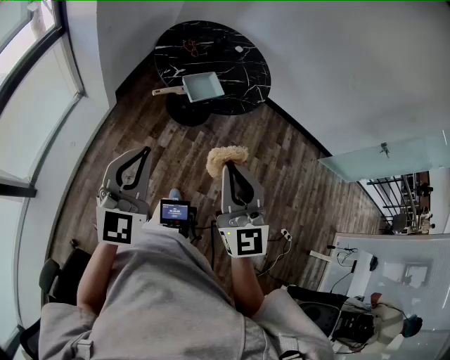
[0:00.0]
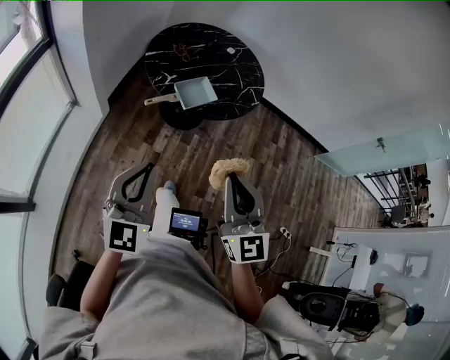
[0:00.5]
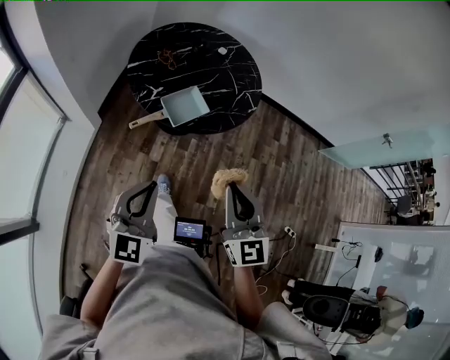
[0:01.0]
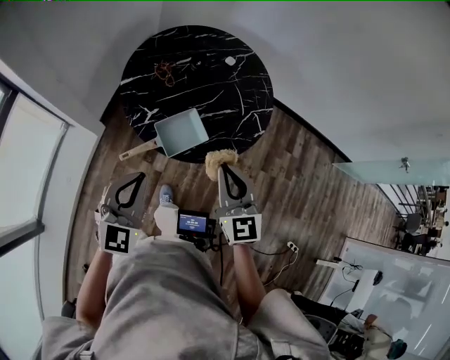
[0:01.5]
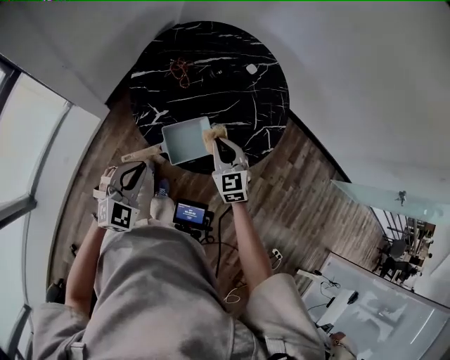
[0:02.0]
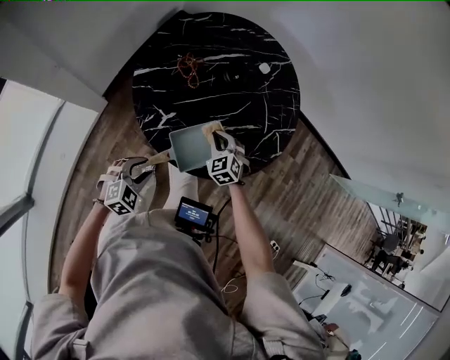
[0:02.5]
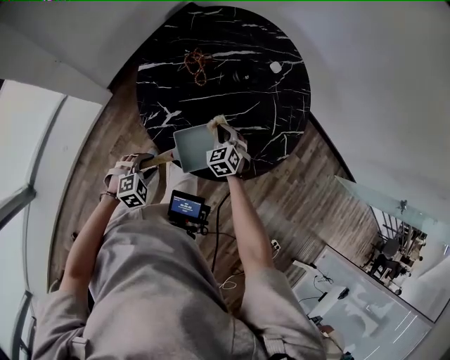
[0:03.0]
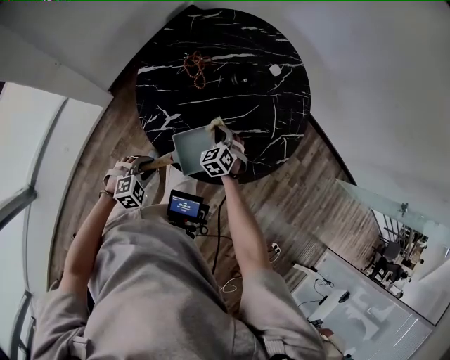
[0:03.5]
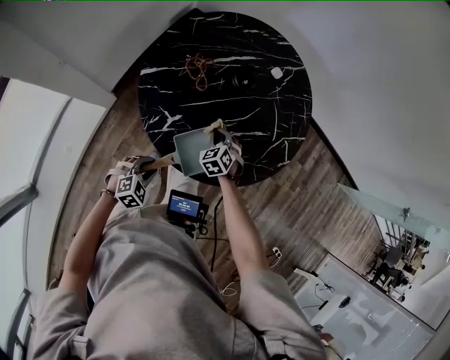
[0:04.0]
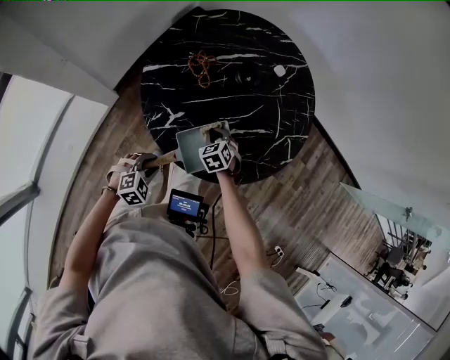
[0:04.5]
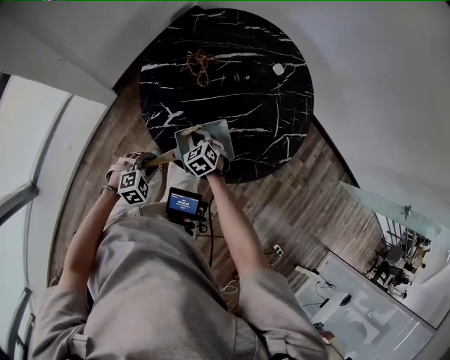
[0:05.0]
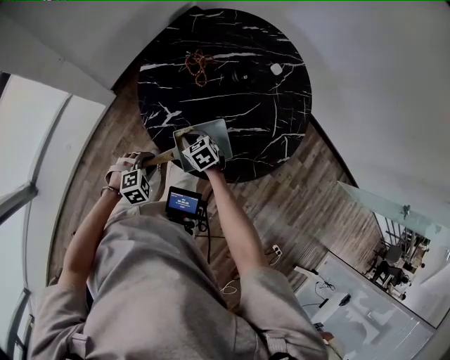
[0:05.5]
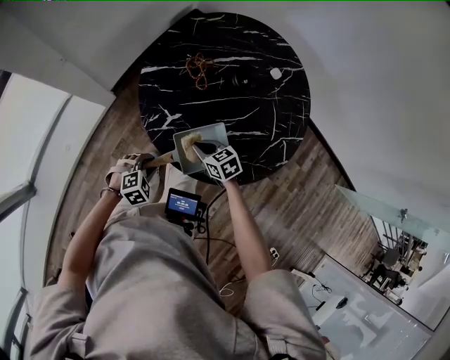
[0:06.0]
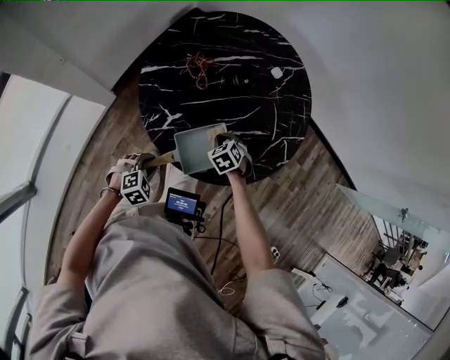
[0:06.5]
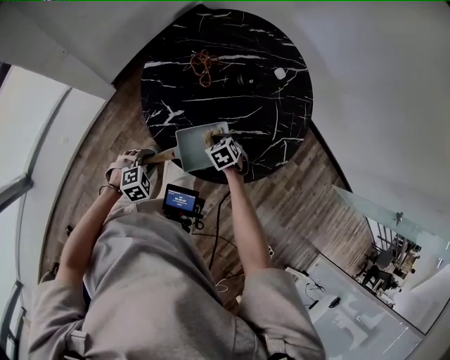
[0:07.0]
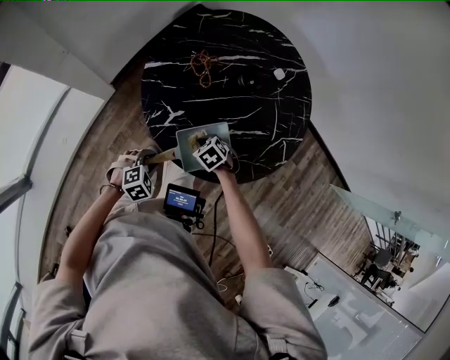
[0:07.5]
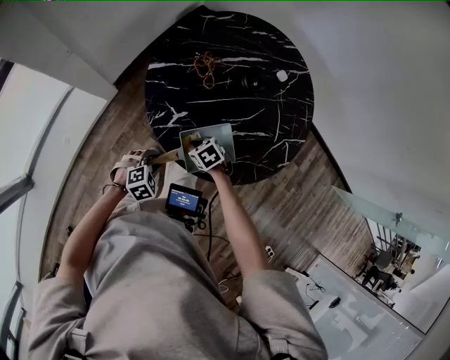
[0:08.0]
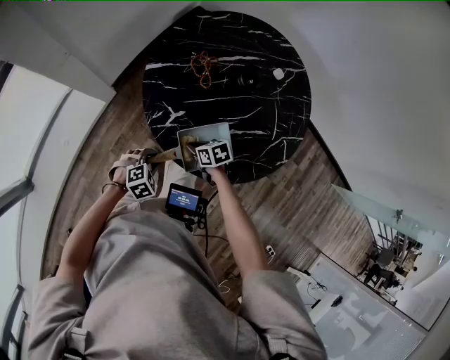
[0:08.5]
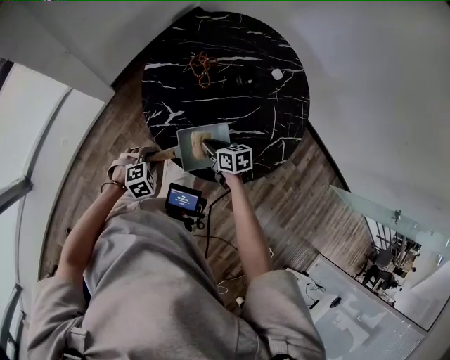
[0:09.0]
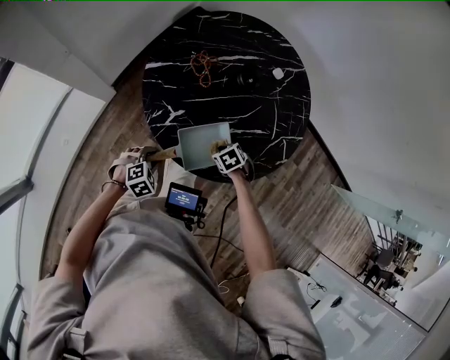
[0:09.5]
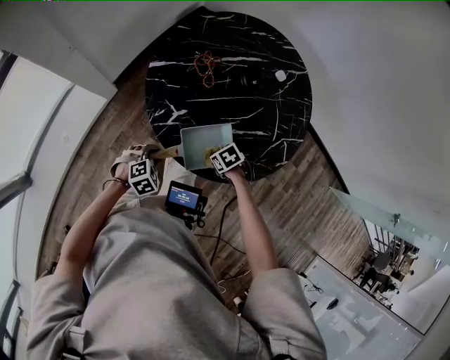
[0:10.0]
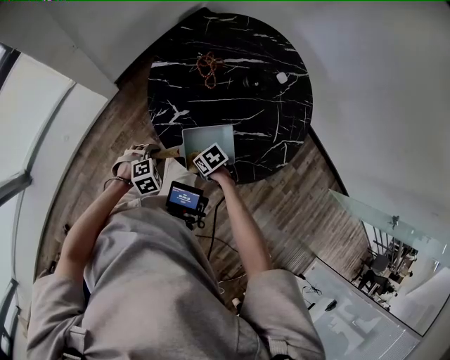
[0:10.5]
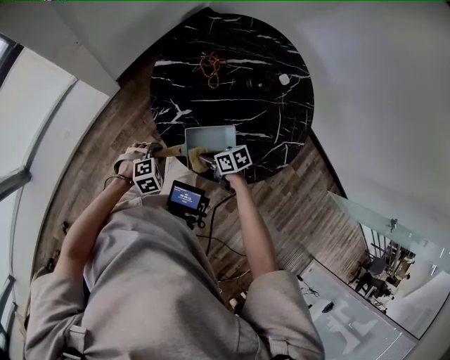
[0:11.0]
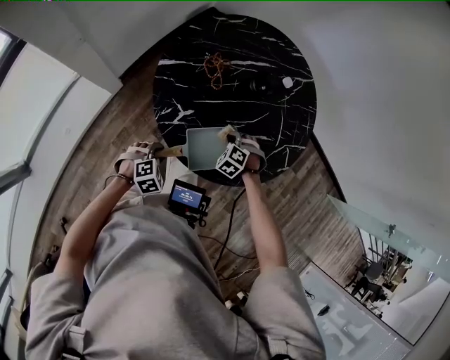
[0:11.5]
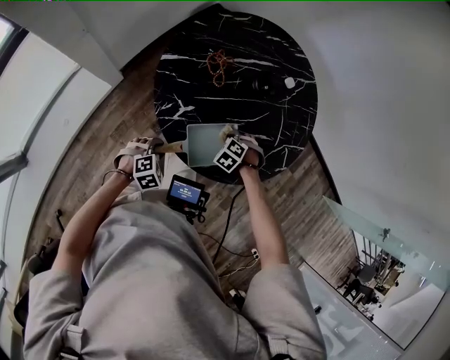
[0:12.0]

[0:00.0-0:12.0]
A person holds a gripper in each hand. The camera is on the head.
0:00.0 to 0:02.0: The pair of grippers is taken forward, about 50 cm. Both grippers move downward, some 25 cm. The left gripper rotates about 30 degrees. The right gripper angles its fingers downward, by roughly 30 degrees.
0:02.0 to 0:04.0: Both grippers travel together downward, approximately 20 cm. The left gripper turns by approximately 30 degrees, and opens up, while the right gripper swivels about 30 degrees.
0:04.0 to 0:06.0: The right gripper ends up some 10 cm from where it was, and turns by about 40 degrees.
0:06.0 to 0:08.0: The right gripper moves downward, roughly 5 cm, and changes its angle by about 20 degrees.
0:08.0 to 0:10.0: The right gripper moves approximately 10 cm.
0:10.0 to 0:12.0: The right gripper changes place by about 10 cm, and rotates about 50 degrees.

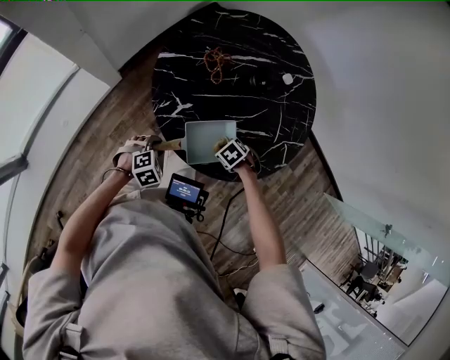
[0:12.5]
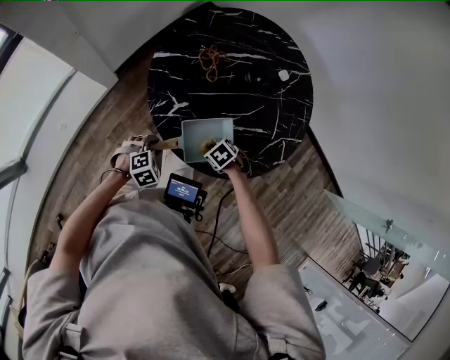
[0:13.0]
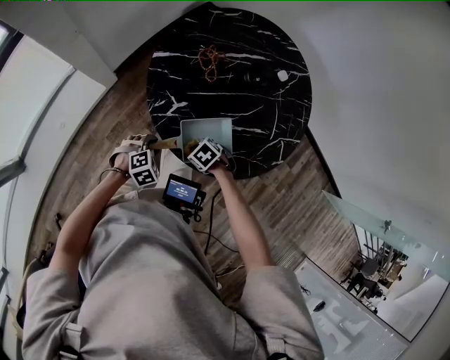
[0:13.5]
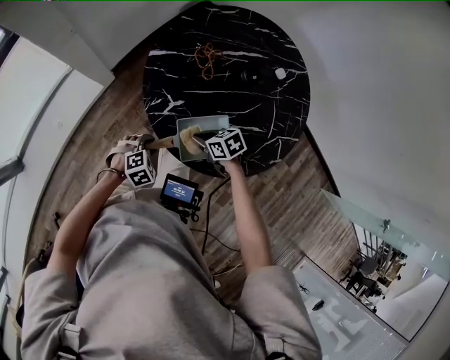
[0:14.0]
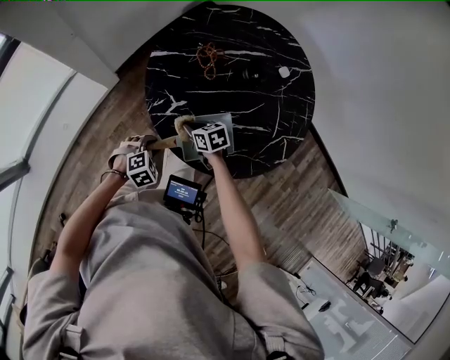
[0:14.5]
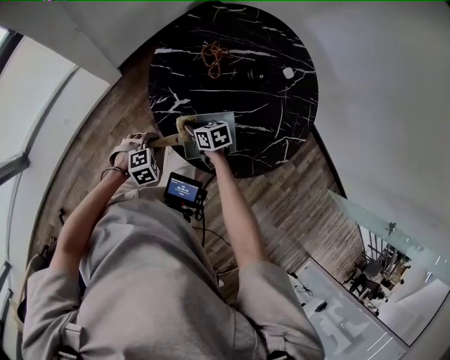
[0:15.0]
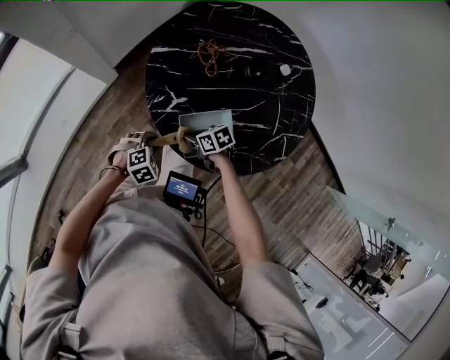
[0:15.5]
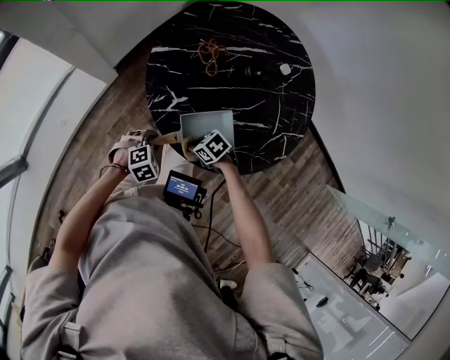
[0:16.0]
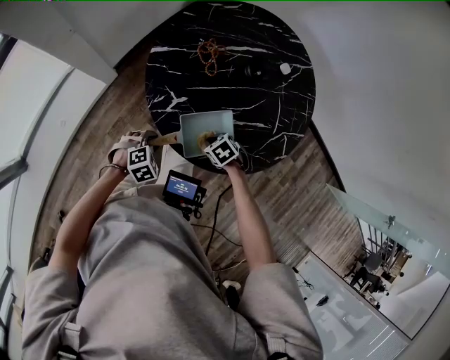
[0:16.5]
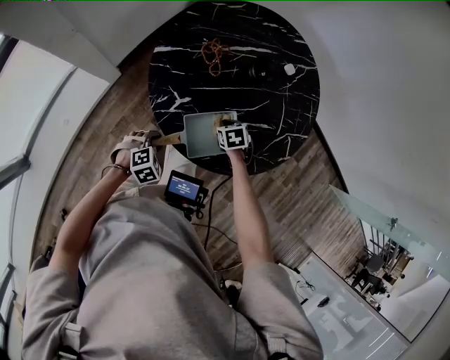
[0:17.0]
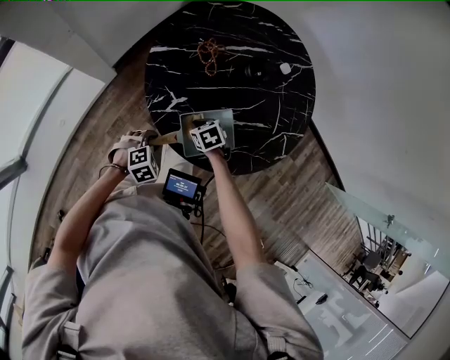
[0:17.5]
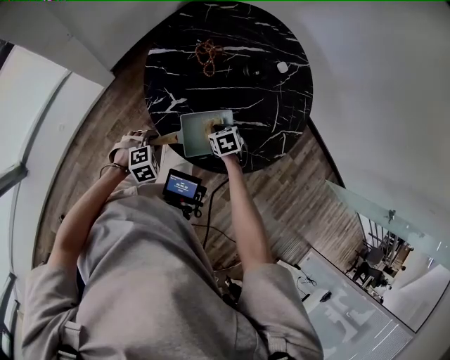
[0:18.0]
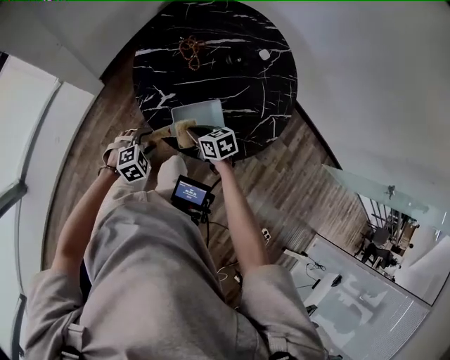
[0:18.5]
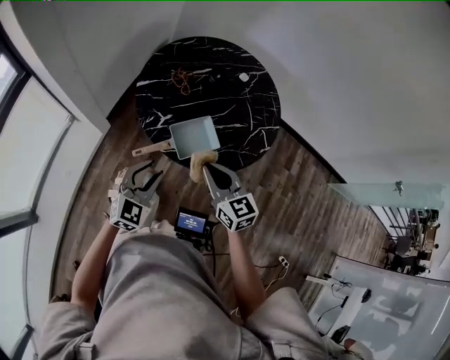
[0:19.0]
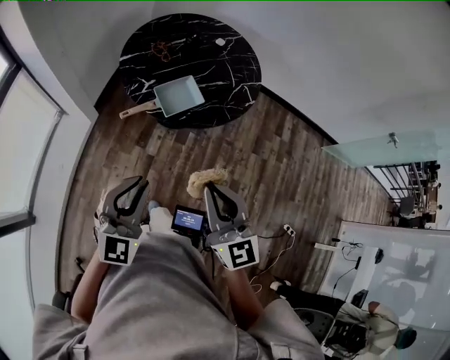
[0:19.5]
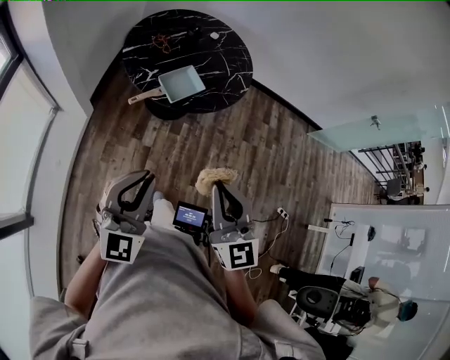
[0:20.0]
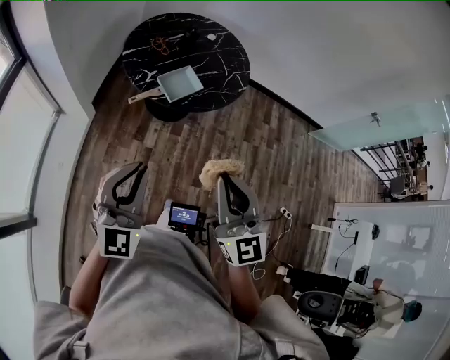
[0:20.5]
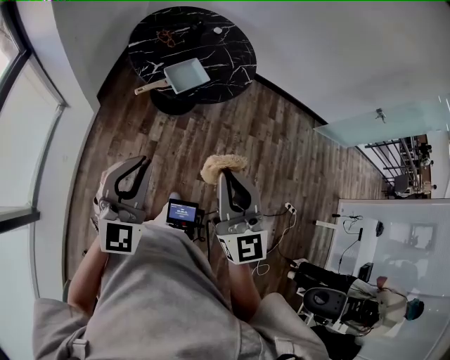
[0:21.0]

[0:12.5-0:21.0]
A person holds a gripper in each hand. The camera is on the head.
0:12.5 to 0:14.5: The right gripper moves about 15 cm, and points its fingers about 30 degrees further upward.
0:14.5 to 0:16.5: The right gripper ends up approximately 10 cm from where it was, and rotates roughly 30 degrees.
0:16.5 to 0:19.0: Both grippers move upward, roughly 30 cm. The left gripper angles its fingers upward, by some 50 degrees. Meanwhile the right gripper tilts its fingers roughly 60 degrees upward.
0:19.0 to 0:21.0: The grippers both shift backward and upward by some 40 cm. The right gripper changes its angle by approximately 40 degrees; the left gripper turns by about 20 degrees, and closes its fingers.

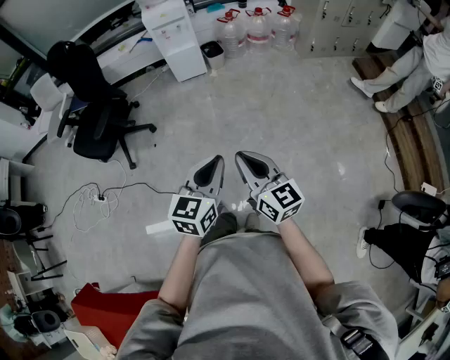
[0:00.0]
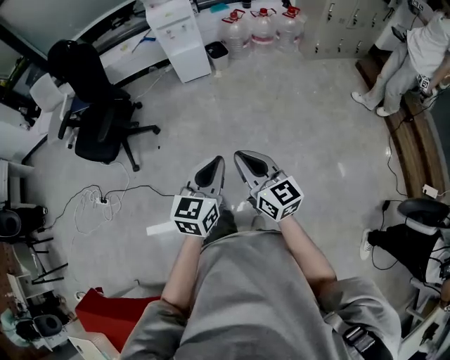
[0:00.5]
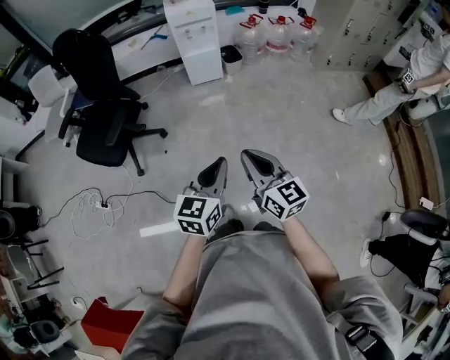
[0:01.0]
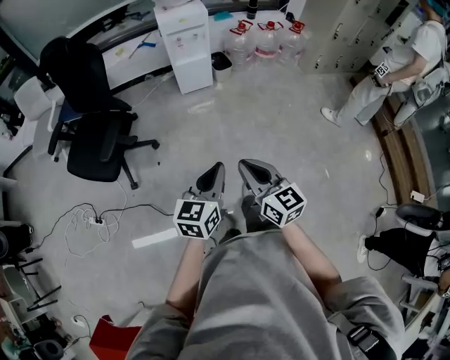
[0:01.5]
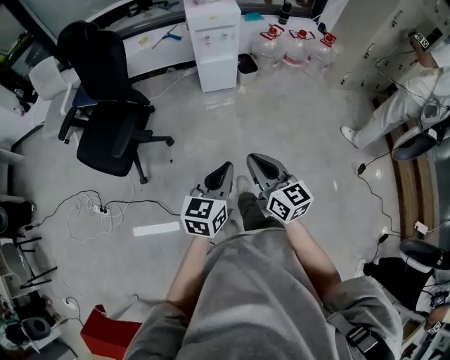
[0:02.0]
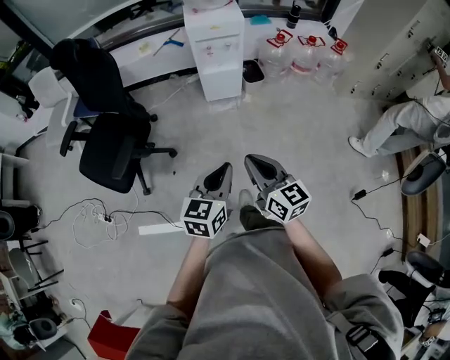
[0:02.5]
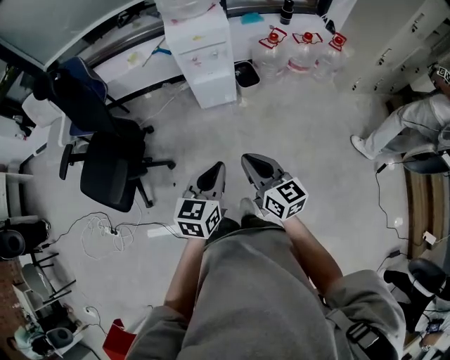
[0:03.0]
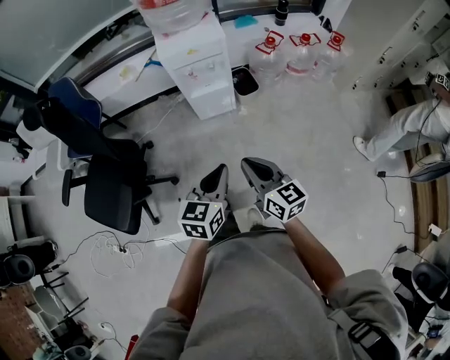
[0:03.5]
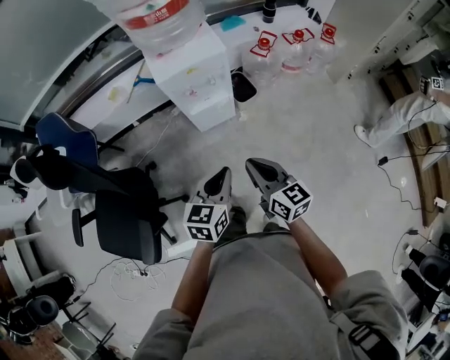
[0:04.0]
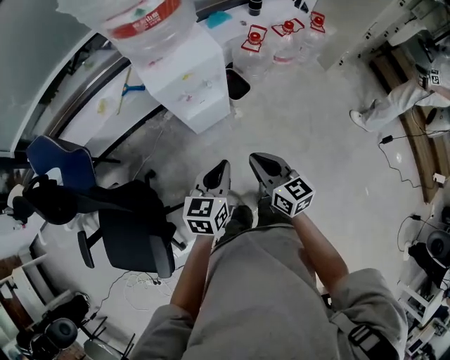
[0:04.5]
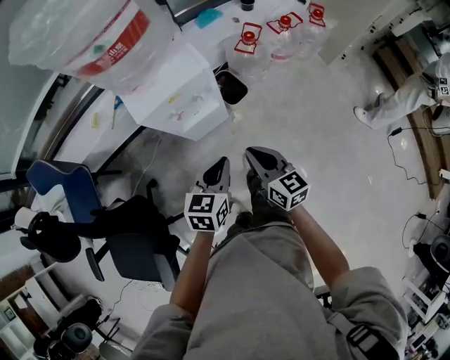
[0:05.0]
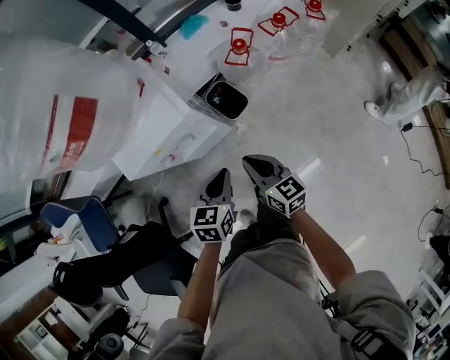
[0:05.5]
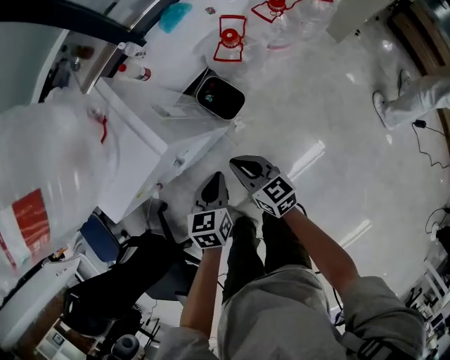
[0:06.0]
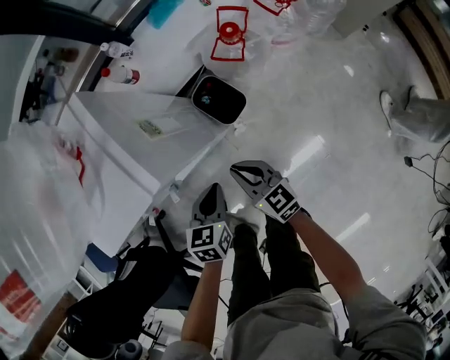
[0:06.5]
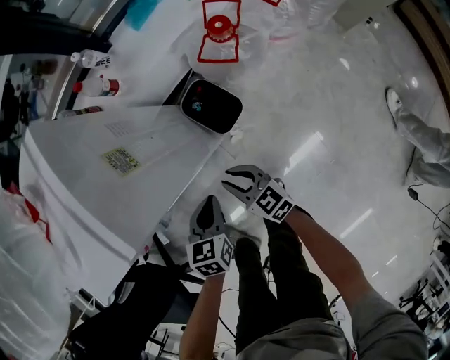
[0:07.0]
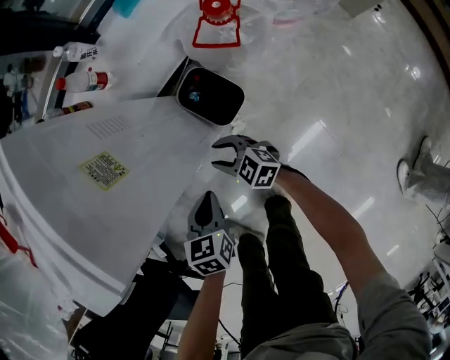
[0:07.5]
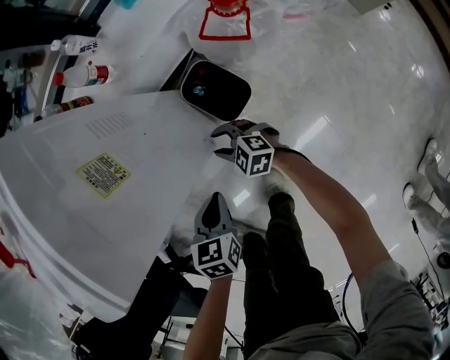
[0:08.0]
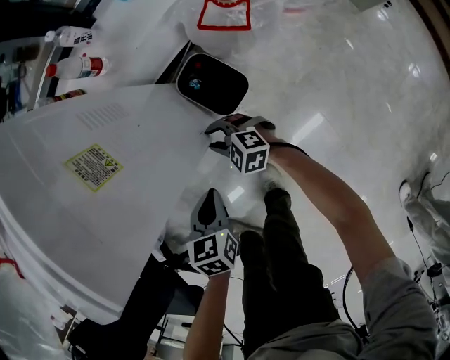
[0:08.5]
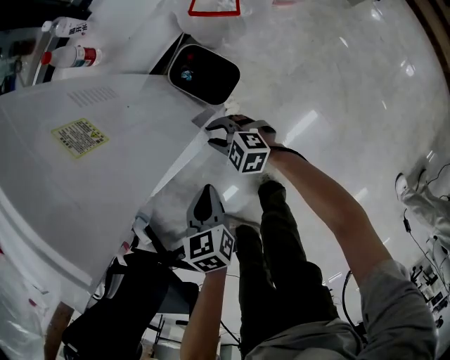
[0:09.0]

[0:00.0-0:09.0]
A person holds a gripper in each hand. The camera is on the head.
0:00.0 to 0:02.0: The two grippers go approximately 35 cm forward and to the left.
0:02.0 to 0:04.5: Both grippers are carried forward, about 50 cm.
0:04.5 to 0:07.0: The two grippers go approximately 50 cm downward and forward. The right gripper swivels about 20 degrees, while the left gripper changes its angle by roughly 30 degrees.
0:07.0 to 0:09.0: The right gripper goes roughly 15 cm downward, and changes its angle by approximately 30 degrees. The left gripper heads downward, covering roughly 5 cm.
